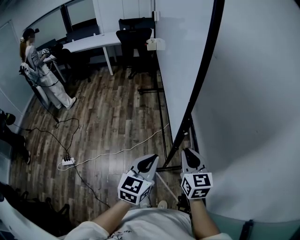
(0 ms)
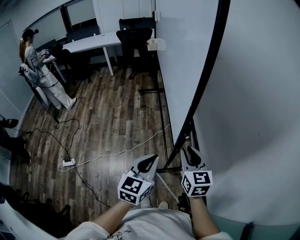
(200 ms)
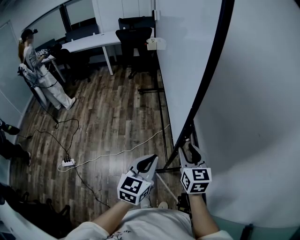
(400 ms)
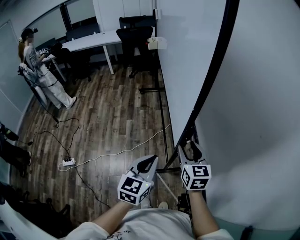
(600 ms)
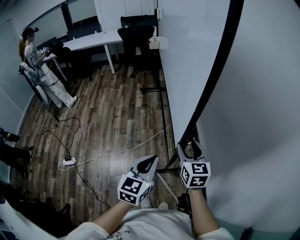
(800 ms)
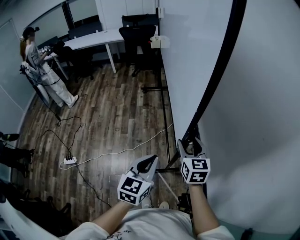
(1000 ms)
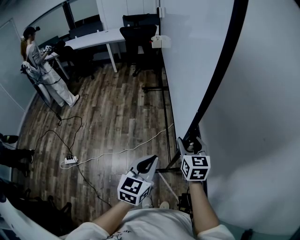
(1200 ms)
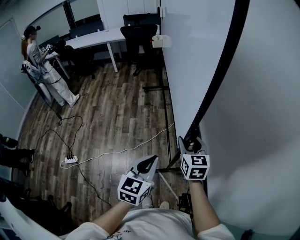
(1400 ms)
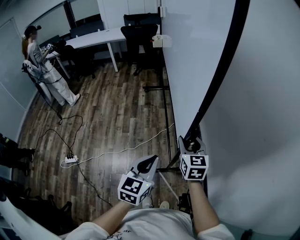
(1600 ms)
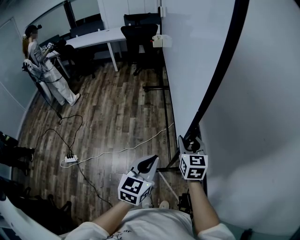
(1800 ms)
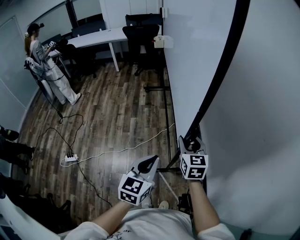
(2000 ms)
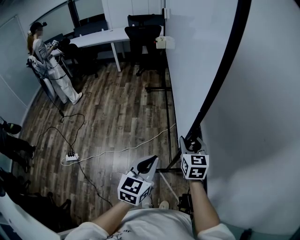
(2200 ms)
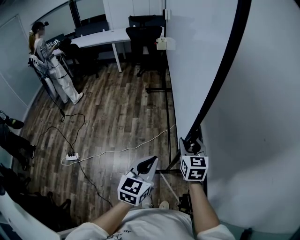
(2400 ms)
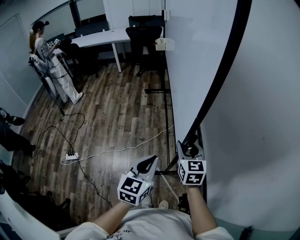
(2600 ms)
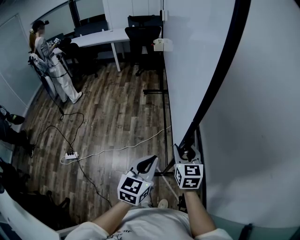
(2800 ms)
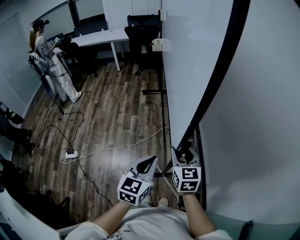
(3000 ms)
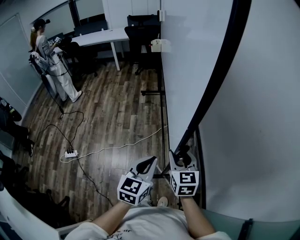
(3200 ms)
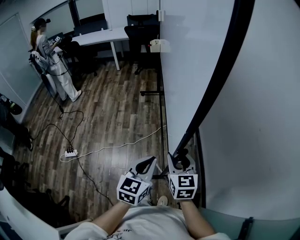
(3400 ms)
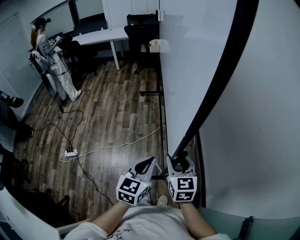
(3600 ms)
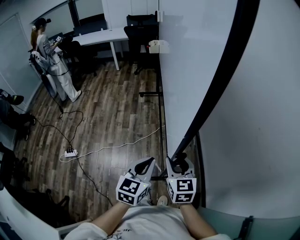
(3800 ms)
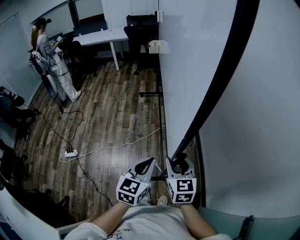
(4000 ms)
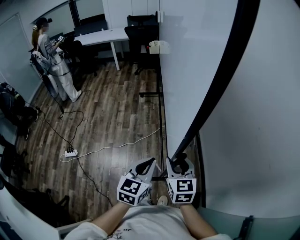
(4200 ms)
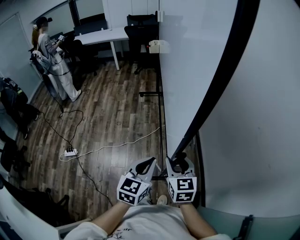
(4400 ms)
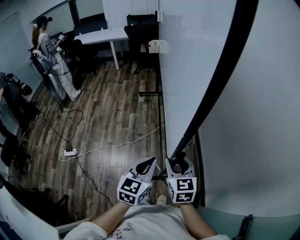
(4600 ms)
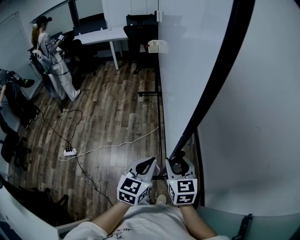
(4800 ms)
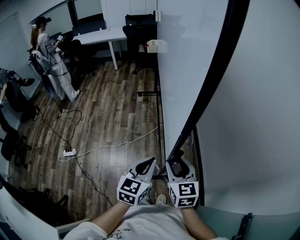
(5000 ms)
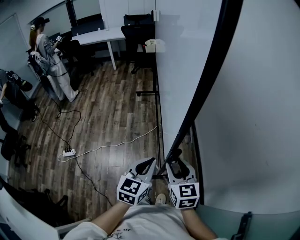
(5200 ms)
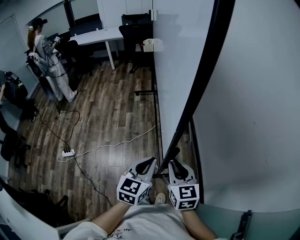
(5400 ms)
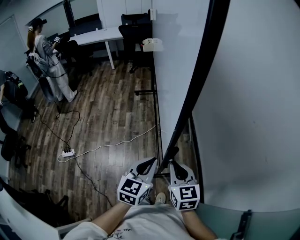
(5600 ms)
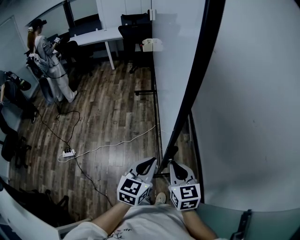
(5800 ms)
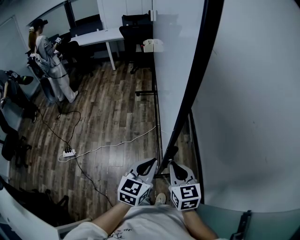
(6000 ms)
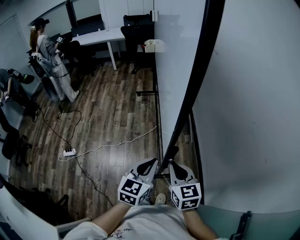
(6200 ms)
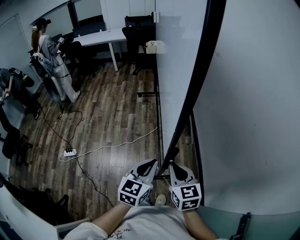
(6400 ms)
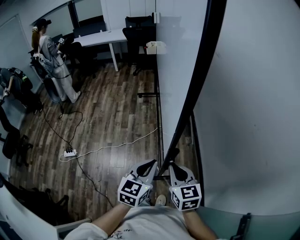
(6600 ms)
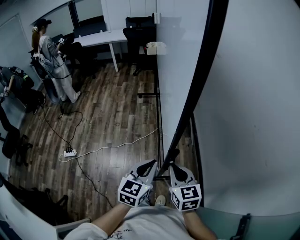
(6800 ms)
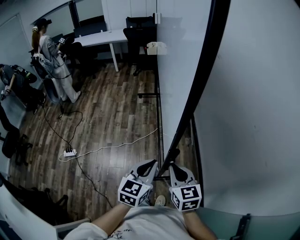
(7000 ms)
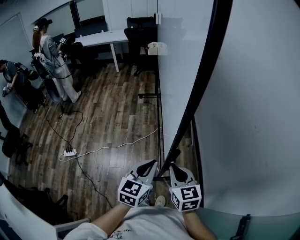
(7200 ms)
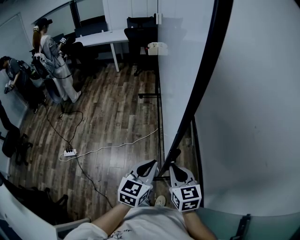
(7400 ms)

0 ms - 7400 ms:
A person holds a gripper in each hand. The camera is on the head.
0 ms - 1400 ms: The right gripper travels forward by some 10 cm, and opens its fingers.
1400 ms - 3000 ms: The left gripper goes approximately 5 cm backward; the right gripper moves backward, some 10 cm.
3000 ms - 4400 ms: The right gripper moves backward, about 10 cm.
4400 ms - 6000 ms: The right gripper goes roughly 5 cm backward, and closes.
6000 ms - 7400 ms: Both grippers stay about where they are.

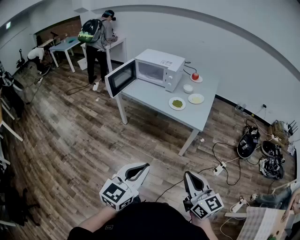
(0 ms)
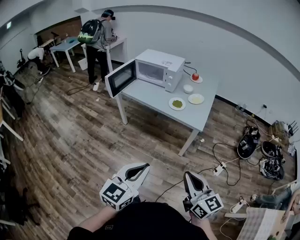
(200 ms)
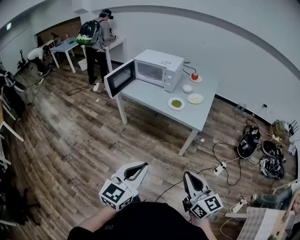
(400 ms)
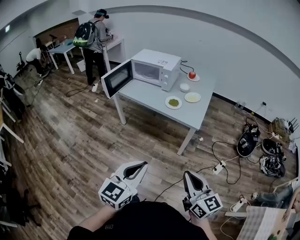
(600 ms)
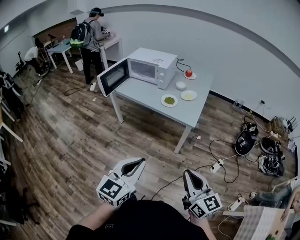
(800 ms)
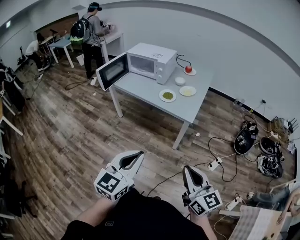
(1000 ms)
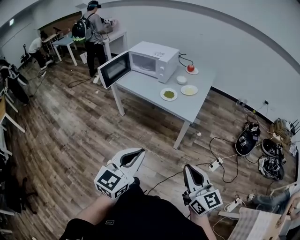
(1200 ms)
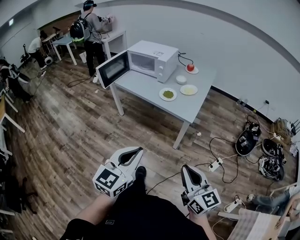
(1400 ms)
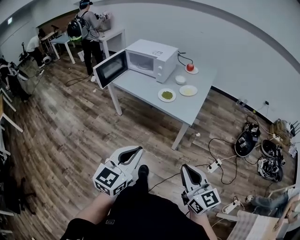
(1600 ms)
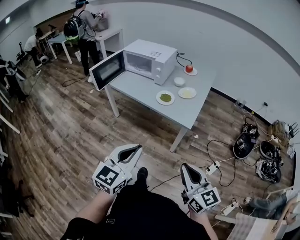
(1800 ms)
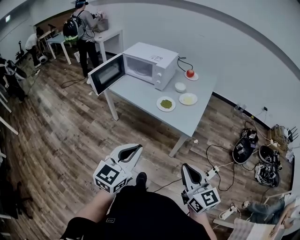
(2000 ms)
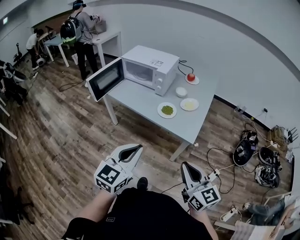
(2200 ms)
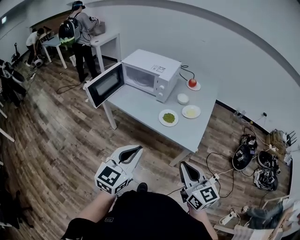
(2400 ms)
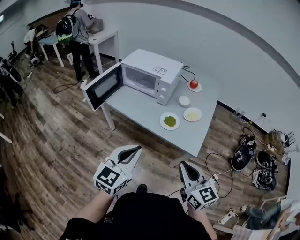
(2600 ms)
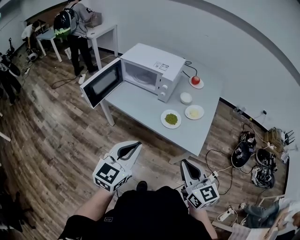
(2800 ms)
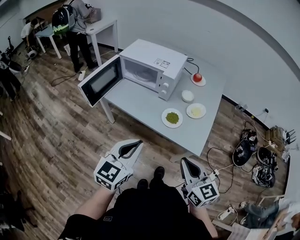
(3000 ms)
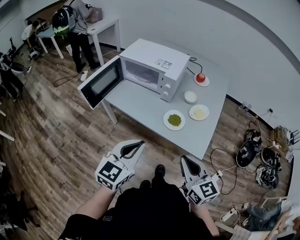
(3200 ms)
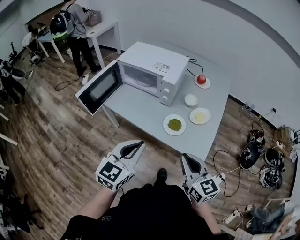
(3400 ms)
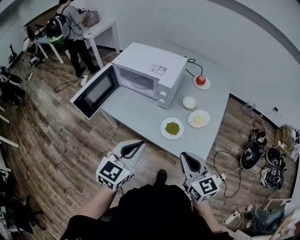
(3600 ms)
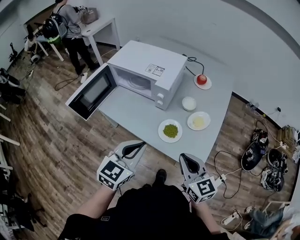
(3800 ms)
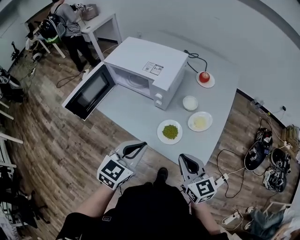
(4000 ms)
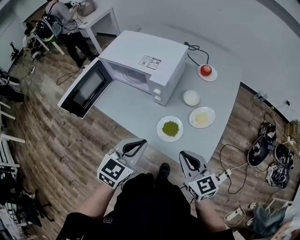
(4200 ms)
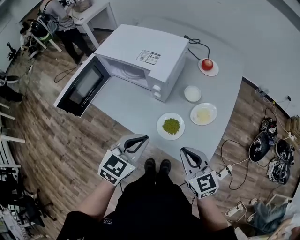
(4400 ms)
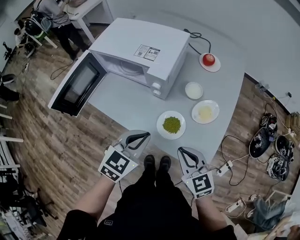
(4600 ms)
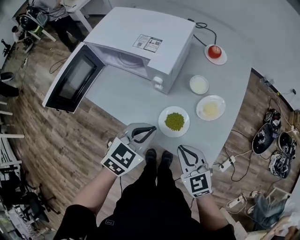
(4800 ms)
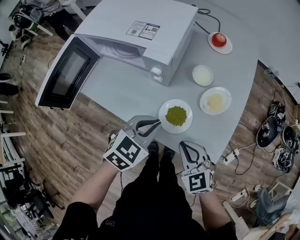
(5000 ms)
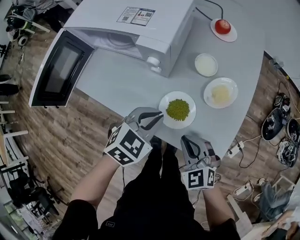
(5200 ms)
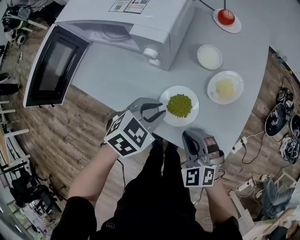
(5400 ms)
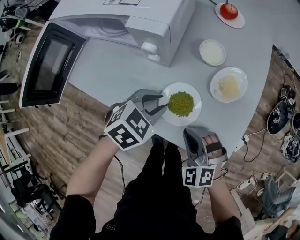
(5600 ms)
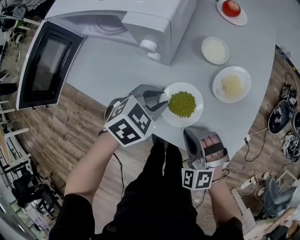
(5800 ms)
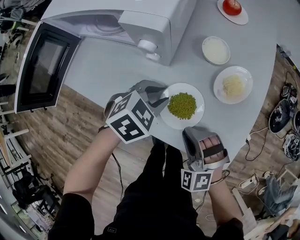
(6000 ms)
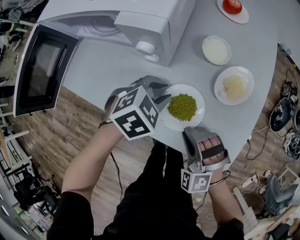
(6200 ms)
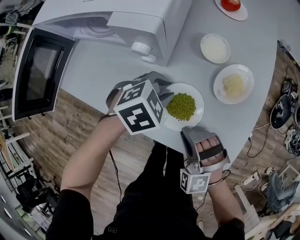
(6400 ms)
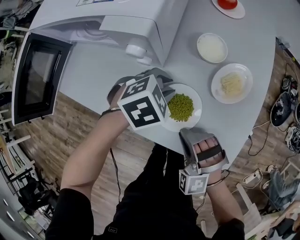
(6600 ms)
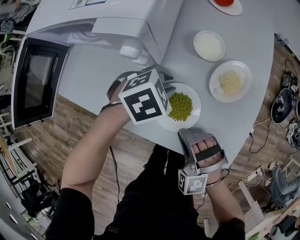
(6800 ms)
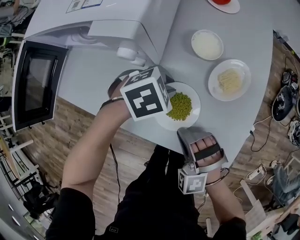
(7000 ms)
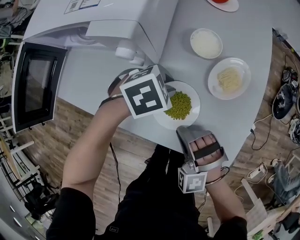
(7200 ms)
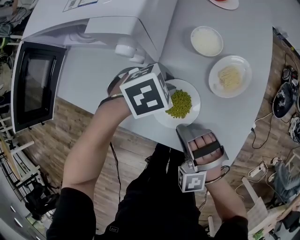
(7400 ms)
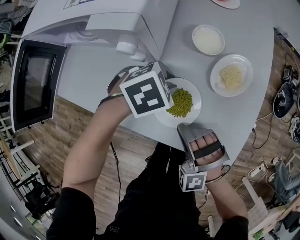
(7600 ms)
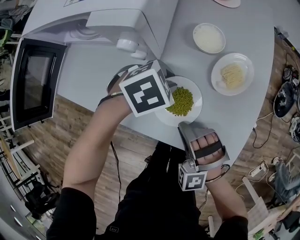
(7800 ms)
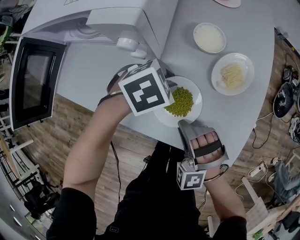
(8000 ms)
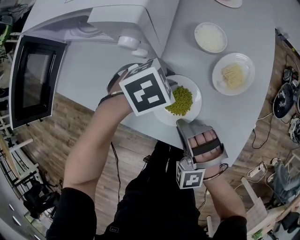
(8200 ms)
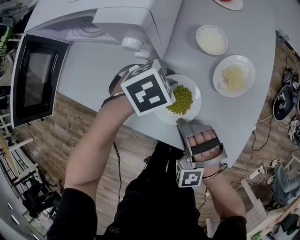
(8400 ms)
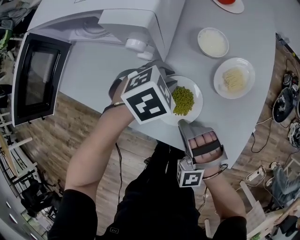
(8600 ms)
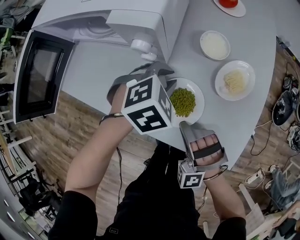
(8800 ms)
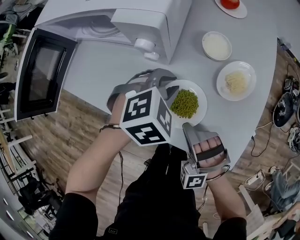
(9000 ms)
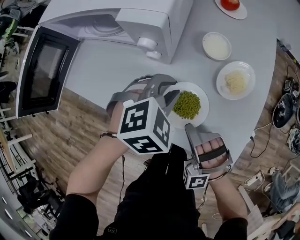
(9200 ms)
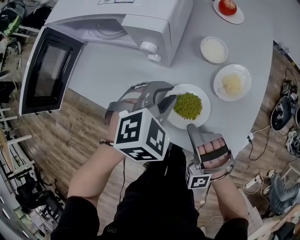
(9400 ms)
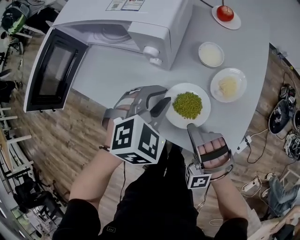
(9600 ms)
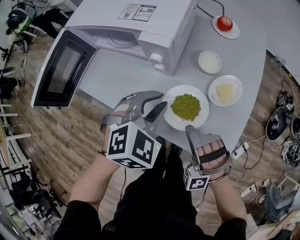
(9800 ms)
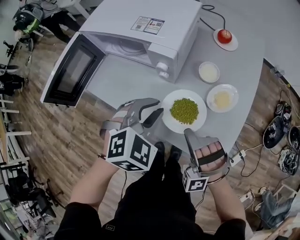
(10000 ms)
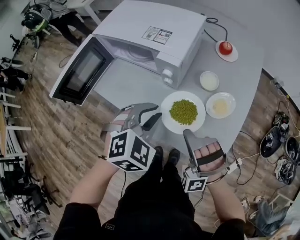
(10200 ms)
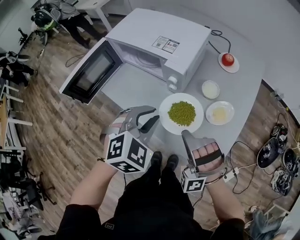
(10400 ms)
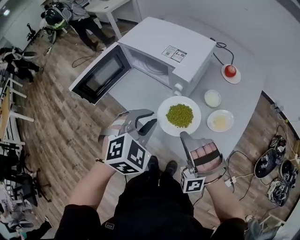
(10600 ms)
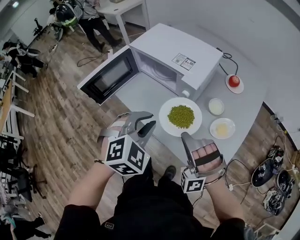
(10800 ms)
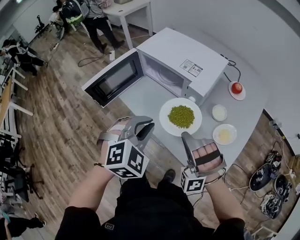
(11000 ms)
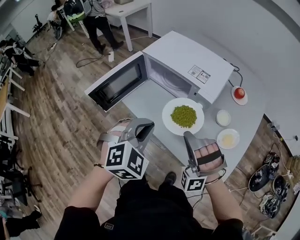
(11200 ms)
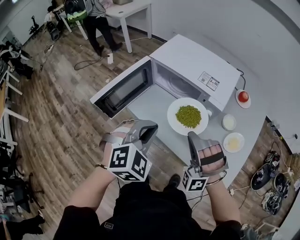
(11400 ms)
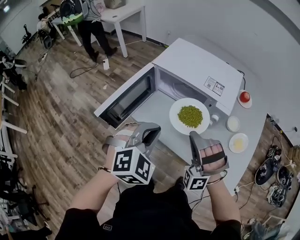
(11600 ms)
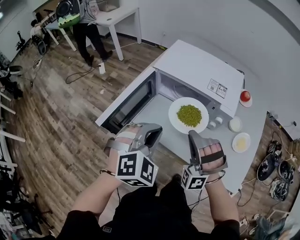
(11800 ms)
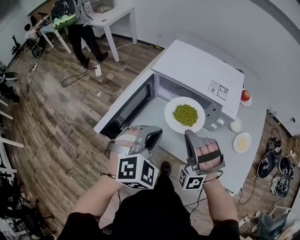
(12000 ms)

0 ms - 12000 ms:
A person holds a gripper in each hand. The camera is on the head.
0 ms - 1600 ms: The right gripper goes roughly 10 cm to the right. The left gripper goes some 10 cm to the right and forward.
1600 ms - 3000 ms: Both grippers travel together forward, some 30 cm.
3000 ms - 4400 ms: The right gripper moves forward and downward, approximately 25 cm. Meanwhile the left gripper shifts approximately 25 cm forward, downward and to the right.
4400 ms - 6000 ms: The left gripper shifts some 25 cm downward and forward, changes its angle by some 40 degrees, and opens its fingers. Meanwhile the right gripper goes approximately 20 cm downward, and rolls counterclockwise, seen from behind, by some 50 degrees.
6000 ms - 7600 ms: The left gripper ends up approximately 5 cm from where it was.
7600 ms - 9000 ms: The left gripper ends up roughly 5 cm from where it was, and rotates about 20 degrees.
9000 ms - 10400 ms: The right gripper heads upward, covering about 20 cm, and swivels about 20 degrees. Meanwhile the left gripper moves upward and backward, approximately 25 cm, and rotates about 30 degrees.
10400 ms - 12000 ms: The right gripper heads to the left and forward, covering some 25 cm, while the left gripper is displaced to the left by some 25 cm.

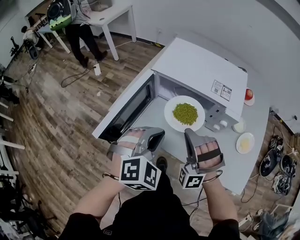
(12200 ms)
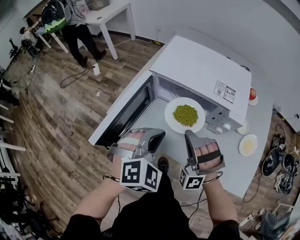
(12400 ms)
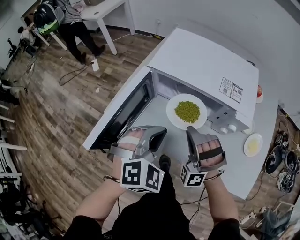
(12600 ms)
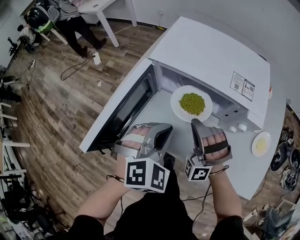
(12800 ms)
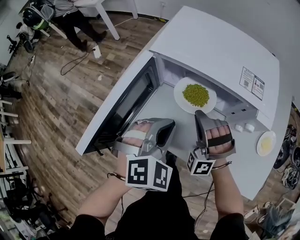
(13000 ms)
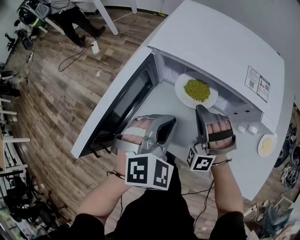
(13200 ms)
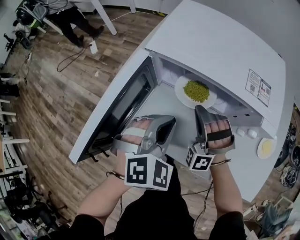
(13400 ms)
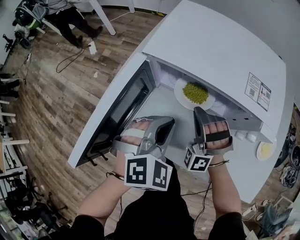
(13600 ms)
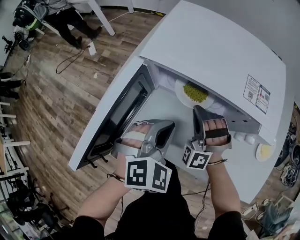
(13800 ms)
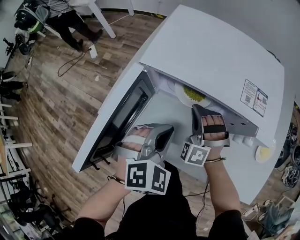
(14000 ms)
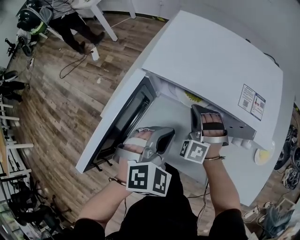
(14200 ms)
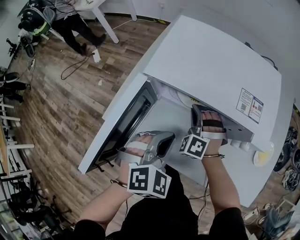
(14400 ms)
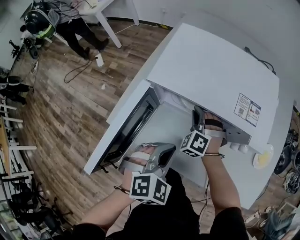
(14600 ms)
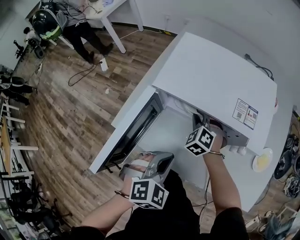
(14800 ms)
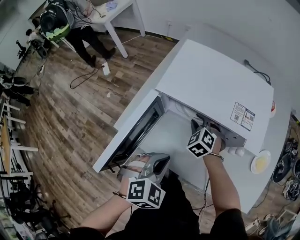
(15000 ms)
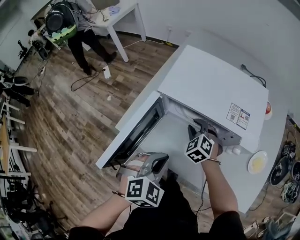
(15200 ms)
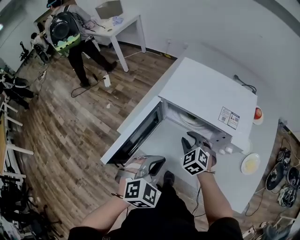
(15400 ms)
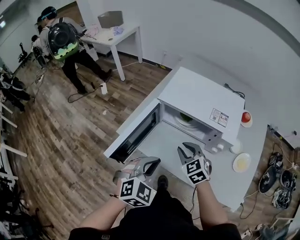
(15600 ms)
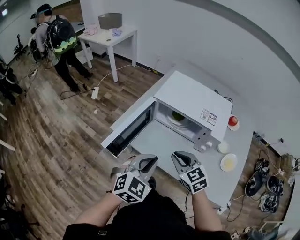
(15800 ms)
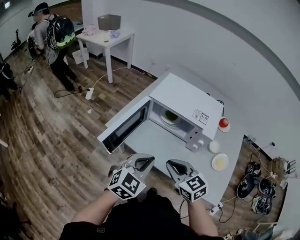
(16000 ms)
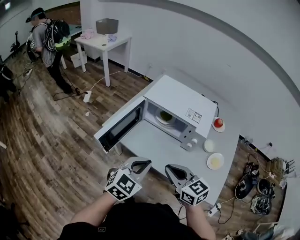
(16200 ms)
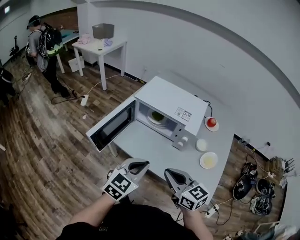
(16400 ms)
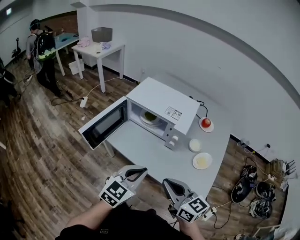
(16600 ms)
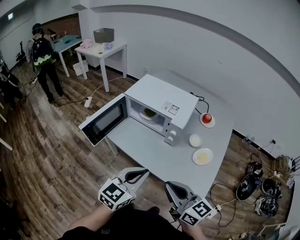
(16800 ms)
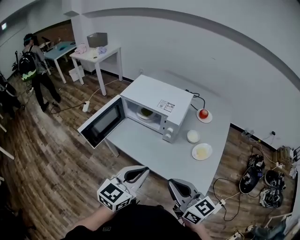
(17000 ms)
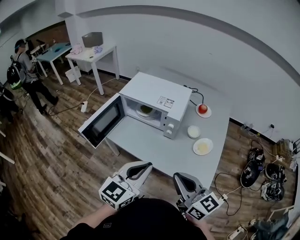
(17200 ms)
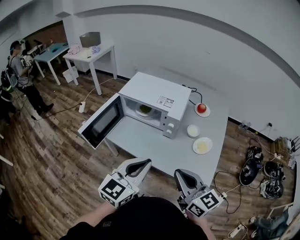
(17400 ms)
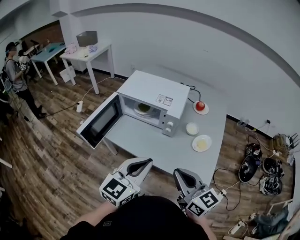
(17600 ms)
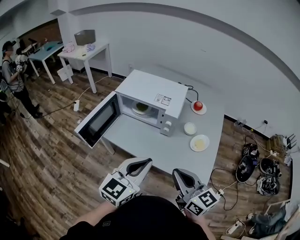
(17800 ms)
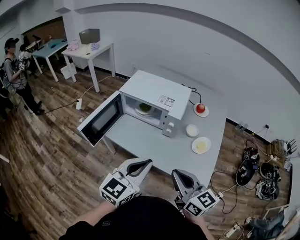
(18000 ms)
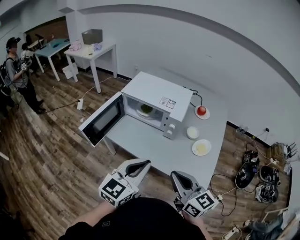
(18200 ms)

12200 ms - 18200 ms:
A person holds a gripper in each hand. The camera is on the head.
12200 ms - 13800 ms: Both grippers move downward and forward, about 20 cm.
13800 ms - 15200 ms: The right gripper swivels some 50 degrees, and opens. Meanwhile the left gripper travels backward by approximately 5 cm.
15200 ms - 16600 ms: The right gripper heads backward and upward, covering roughly 50 cm, tilts its fingers about 40 degrees upward, and closes. Meanwhile the left gripper goes approximately 25 cm backward, to the right and upward, and turns by roughly 40 degrees.
16600 ms - 18200 ms: The left gripper shifts approximately 5 cm upward.
